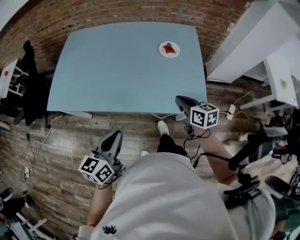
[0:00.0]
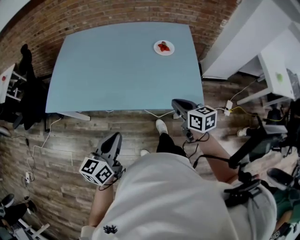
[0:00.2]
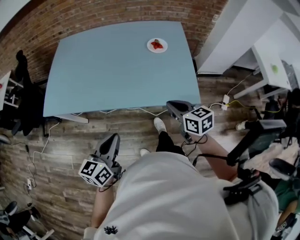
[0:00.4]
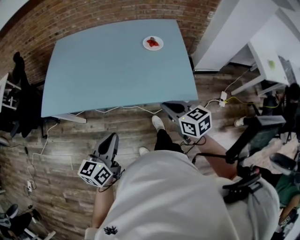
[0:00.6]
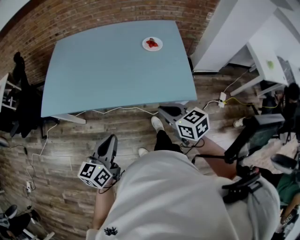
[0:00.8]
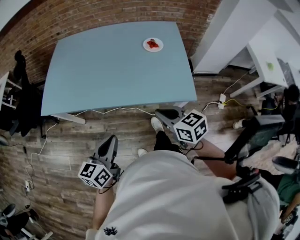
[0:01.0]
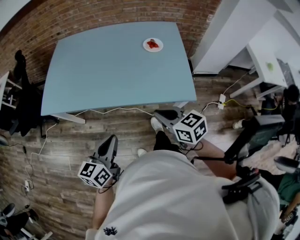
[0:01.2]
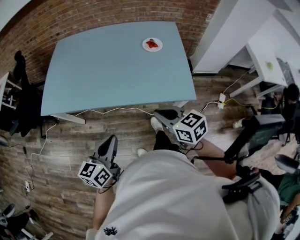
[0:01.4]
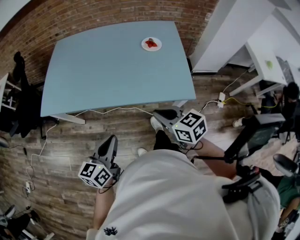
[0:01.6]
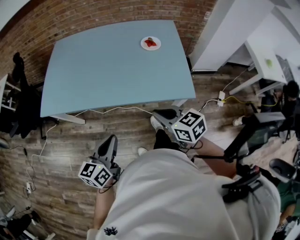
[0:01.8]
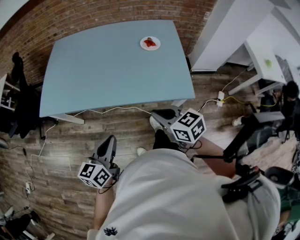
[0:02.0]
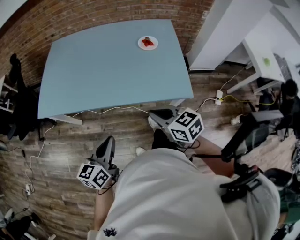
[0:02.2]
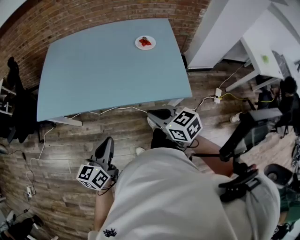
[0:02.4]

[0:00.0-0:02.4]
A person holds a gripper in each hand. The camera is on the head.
0:00.0 to 0:01.2: The right gripper shifts approximately 15 cm backward and to the left, while the left gripper moves backward, some 5 cm.
0:01.2 to 0:02.4: The two grippers keep their place.

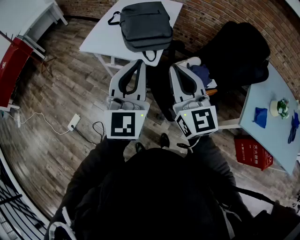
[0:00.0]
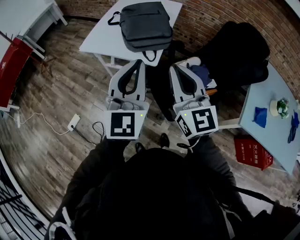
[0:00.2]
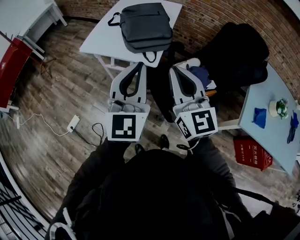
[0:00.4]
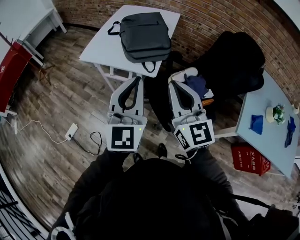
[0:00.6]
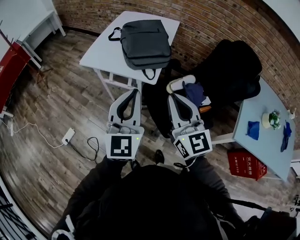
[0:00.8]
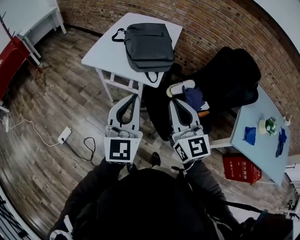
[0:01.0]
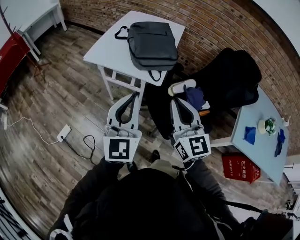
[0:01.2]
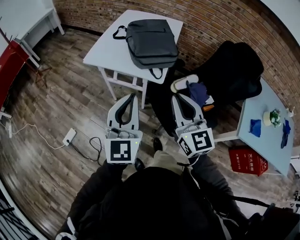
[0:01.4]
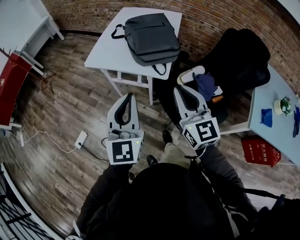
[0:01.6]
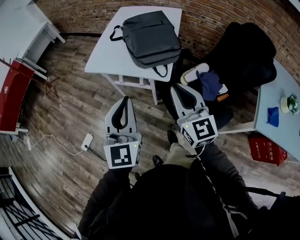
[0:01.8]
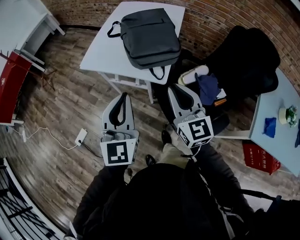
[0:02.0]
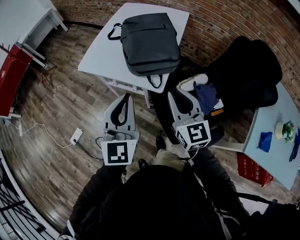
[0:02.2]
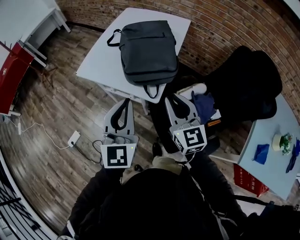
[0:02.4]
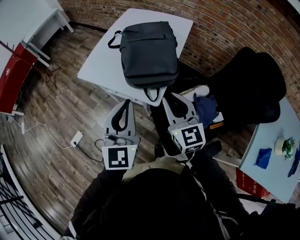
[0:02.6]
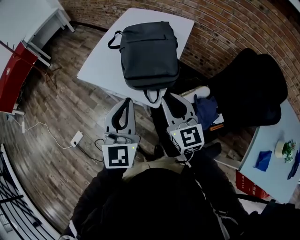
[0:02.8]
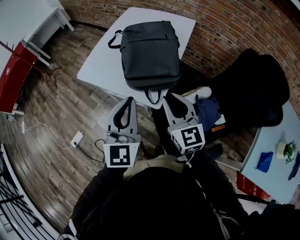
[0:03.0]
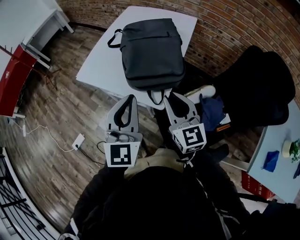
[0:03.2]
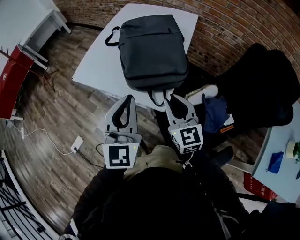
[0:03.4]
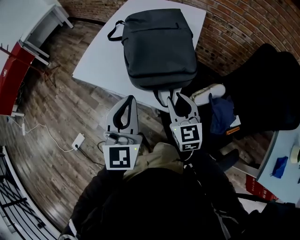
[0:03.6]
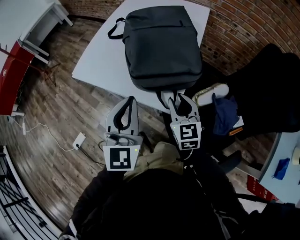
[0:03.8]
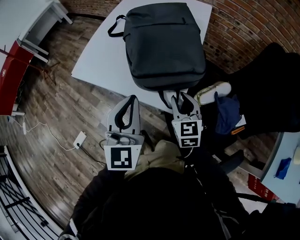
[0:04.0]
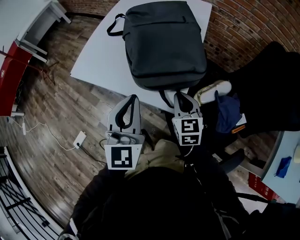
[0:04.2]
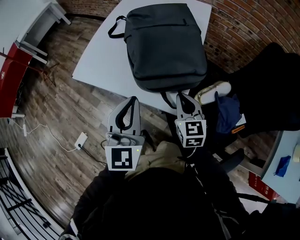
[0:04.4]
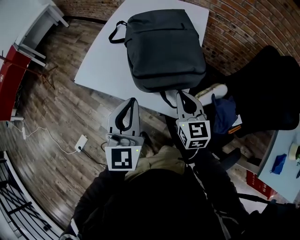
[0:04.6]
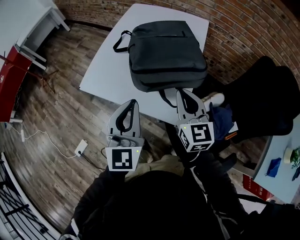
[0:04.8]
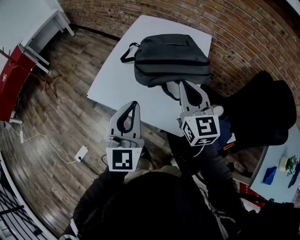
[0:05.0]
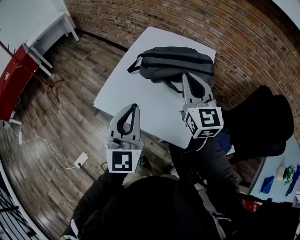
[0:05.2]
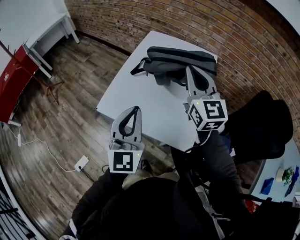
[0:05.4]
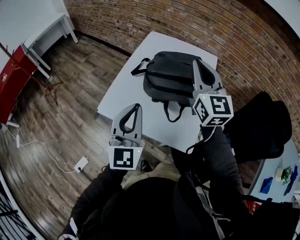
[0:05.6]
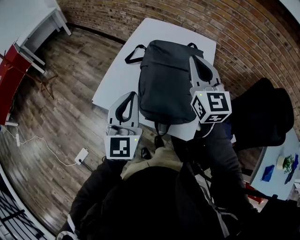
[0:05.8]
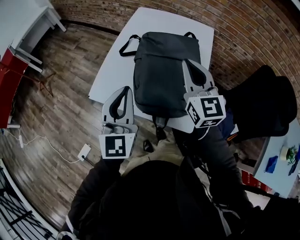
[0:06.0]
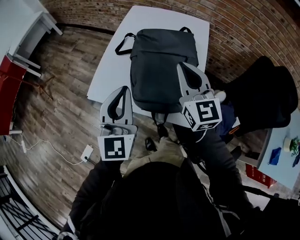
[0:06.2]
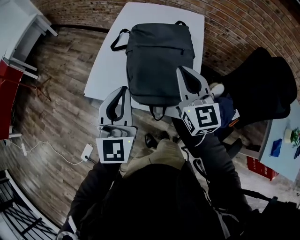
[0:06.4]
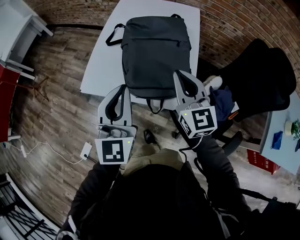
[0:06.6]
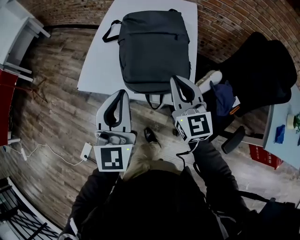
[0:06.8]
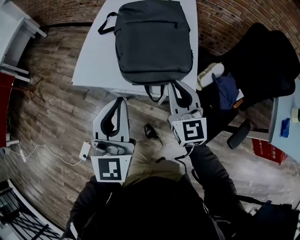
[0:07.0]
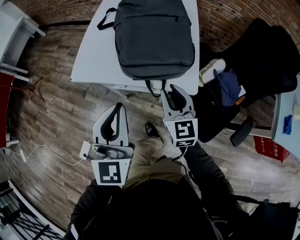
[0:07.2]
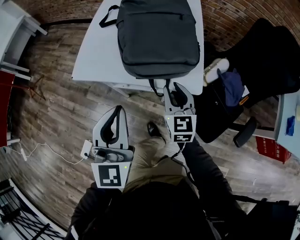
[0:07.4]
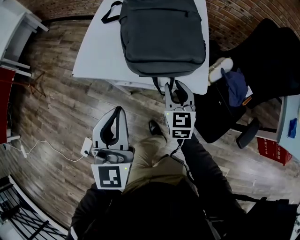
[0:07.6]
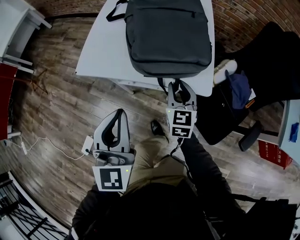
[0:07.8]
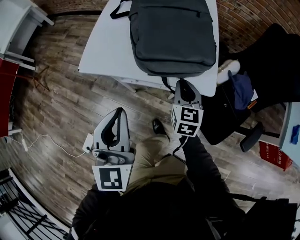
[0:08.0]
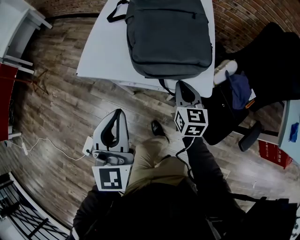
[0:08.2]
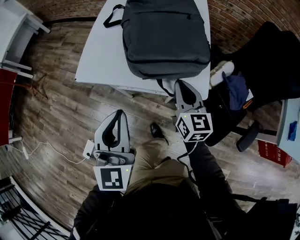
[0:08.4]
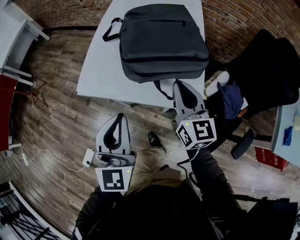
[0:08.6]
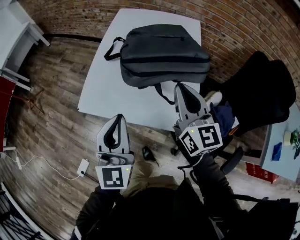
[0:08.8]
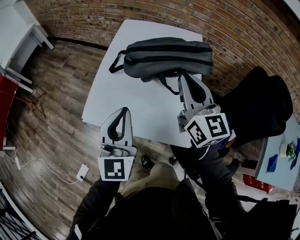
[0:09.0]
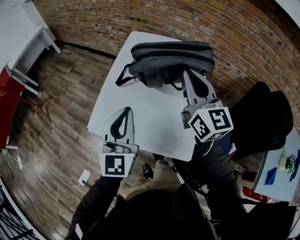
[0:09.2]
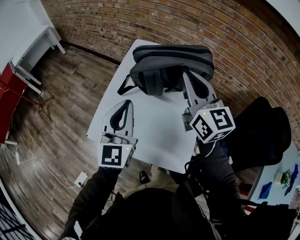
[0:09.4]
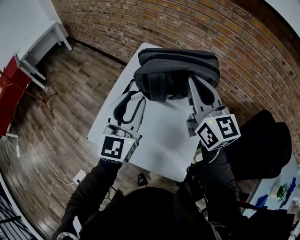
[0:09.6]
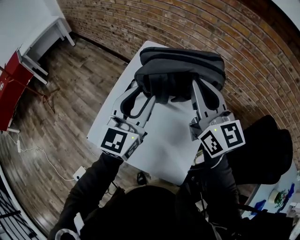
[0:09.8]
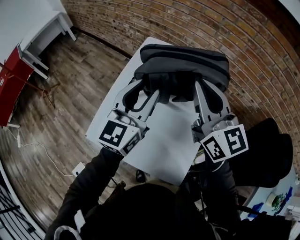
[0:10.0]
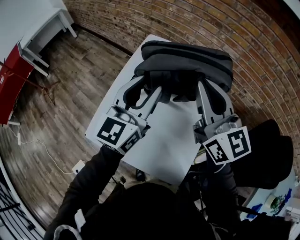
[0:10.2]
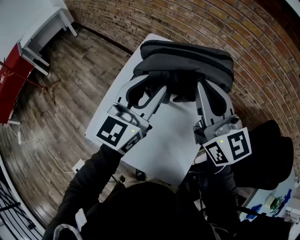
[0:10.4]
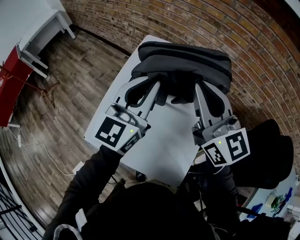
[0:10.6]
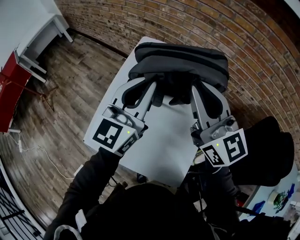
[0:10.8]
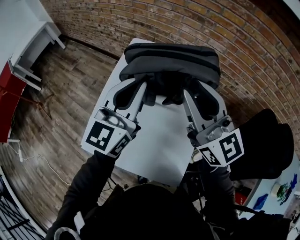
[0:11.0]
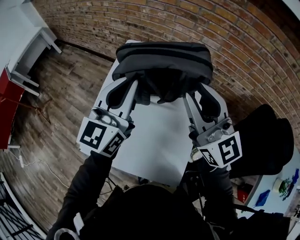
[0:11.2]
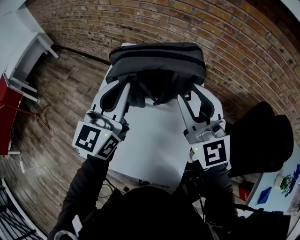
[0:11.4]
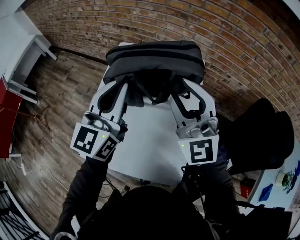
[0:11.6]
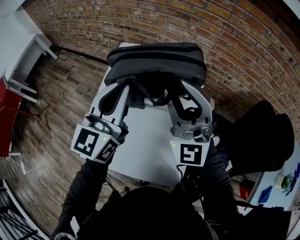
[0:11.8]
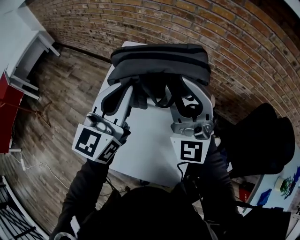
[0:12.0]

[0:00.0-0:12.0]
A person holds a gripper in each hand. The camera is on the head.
0:00.0 to 0:01.6: The right gripper is displaced to the left by some 5 cm; the left gripper shifts approximately 10 cm to the left.
0:01.6 to 0:03.0: The right gripper heads forward, to the right and downward, covering roughly 20 cm. The left gripper goes about 20 cm forward and to the right.
0:03.0 to 0:04.4: The left gripper goes roughly 15 cm downward, forward and to the left; the right gripper shifts roughly 20 cm downward and forward, and turns by about 20 degrees.
0:04.4 to 0:06.0: The right gripper travels upward and forward by some 30 cm, and swivels some 20 degrees. The left gripper is displaced to the left, upward and forward by approximately 20 cm.
0:06.0 to 0:07.6: The left gripper heads backward and downward, covering some 20 cm. The right gripper shifts roughly 35 cm downward and backward, changes its angle by approximately 30 degrees, and opens its fingers.
0:07.6 to 0:09.0: The right gripper goes roughly 35 cm upward and forward, and turns by approximately 30 degrees, while the left gripper moves forward and upward, roughly 20 cm.
0:09.0 to 0:10.4: Both grippers move forward and upward, approximately 20 cm. The left gripper opens its fingers.
0:10.4 to 0:12.0: The right gripper rolls counterclockwise, seen from behind, by some 50 degrees, and opens; the left gripper closes up.

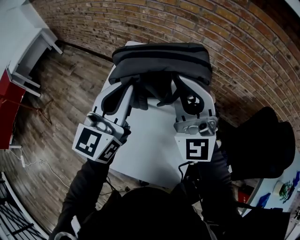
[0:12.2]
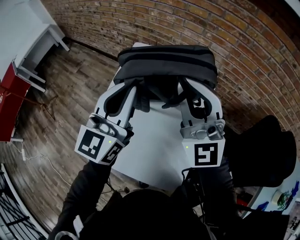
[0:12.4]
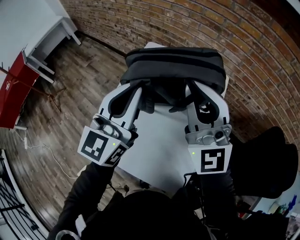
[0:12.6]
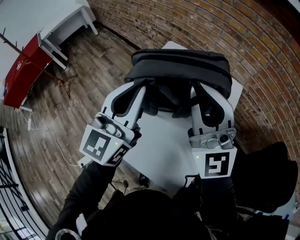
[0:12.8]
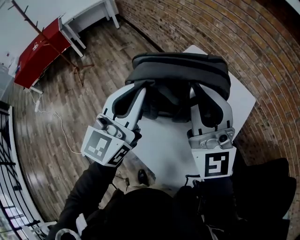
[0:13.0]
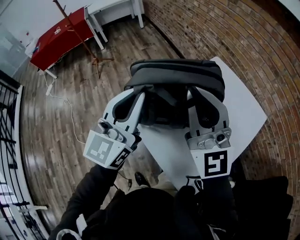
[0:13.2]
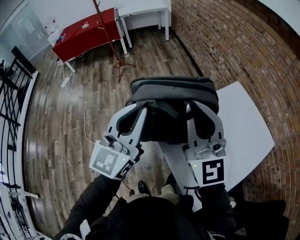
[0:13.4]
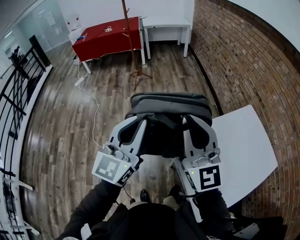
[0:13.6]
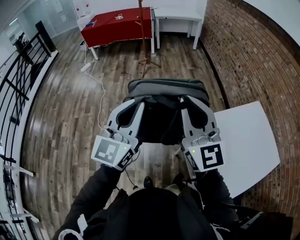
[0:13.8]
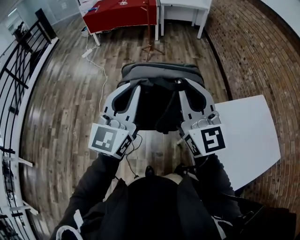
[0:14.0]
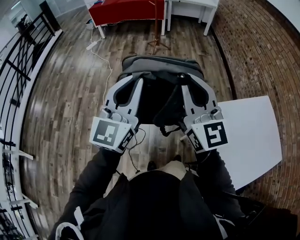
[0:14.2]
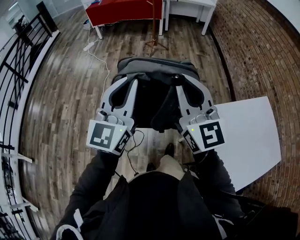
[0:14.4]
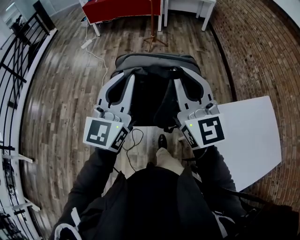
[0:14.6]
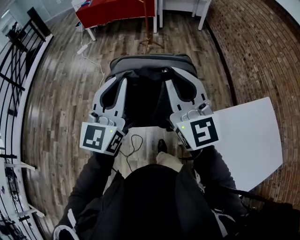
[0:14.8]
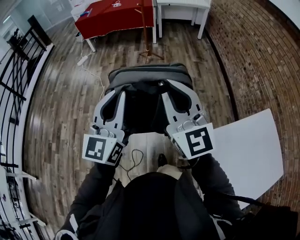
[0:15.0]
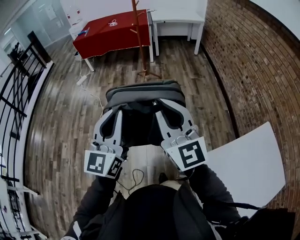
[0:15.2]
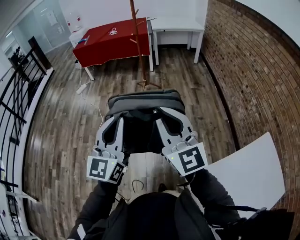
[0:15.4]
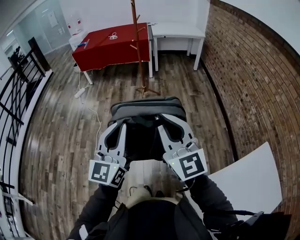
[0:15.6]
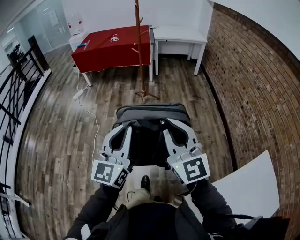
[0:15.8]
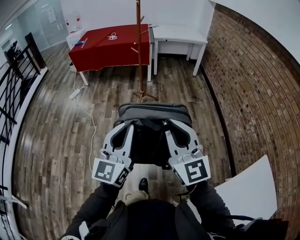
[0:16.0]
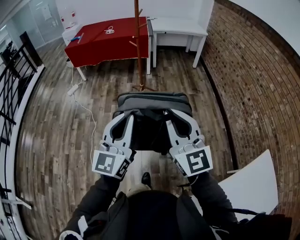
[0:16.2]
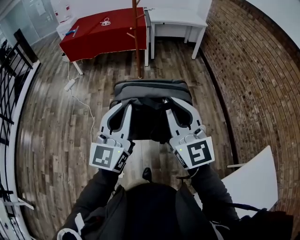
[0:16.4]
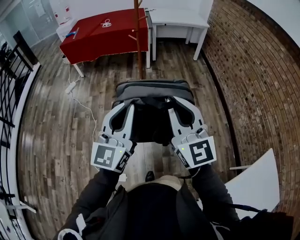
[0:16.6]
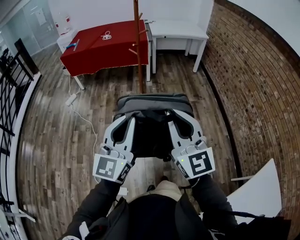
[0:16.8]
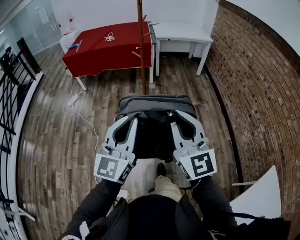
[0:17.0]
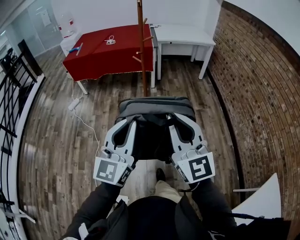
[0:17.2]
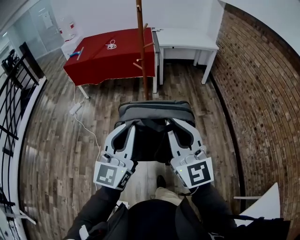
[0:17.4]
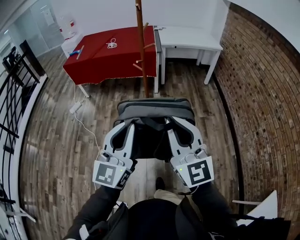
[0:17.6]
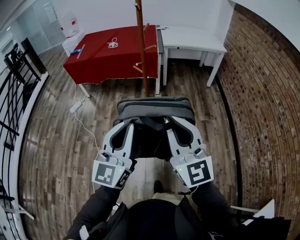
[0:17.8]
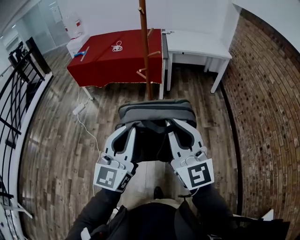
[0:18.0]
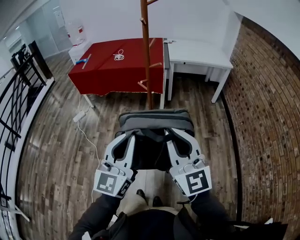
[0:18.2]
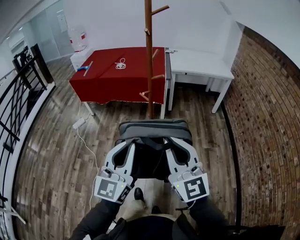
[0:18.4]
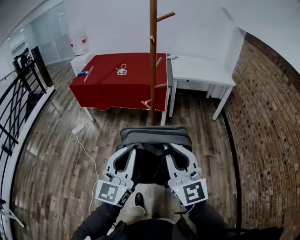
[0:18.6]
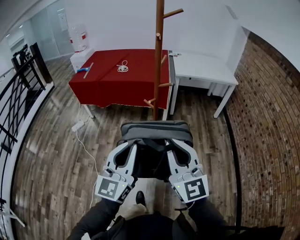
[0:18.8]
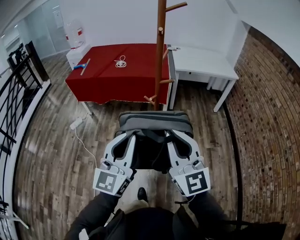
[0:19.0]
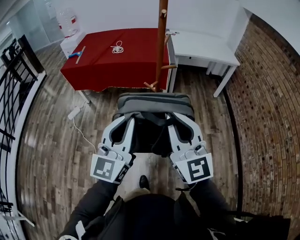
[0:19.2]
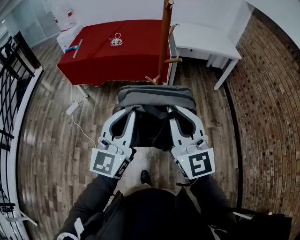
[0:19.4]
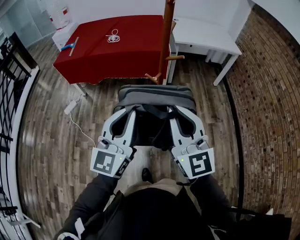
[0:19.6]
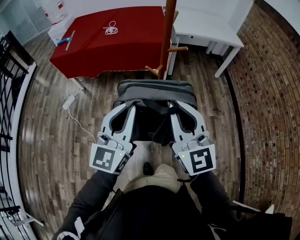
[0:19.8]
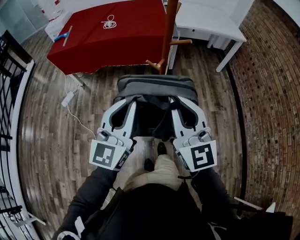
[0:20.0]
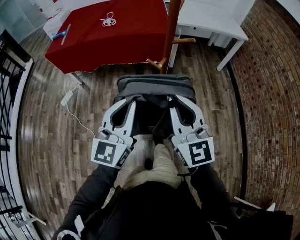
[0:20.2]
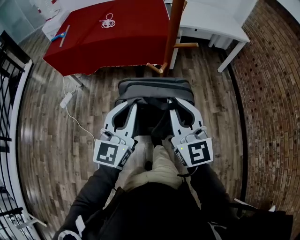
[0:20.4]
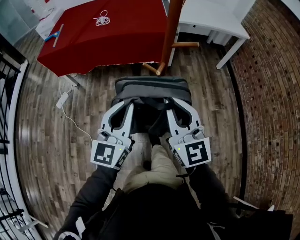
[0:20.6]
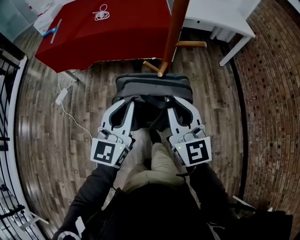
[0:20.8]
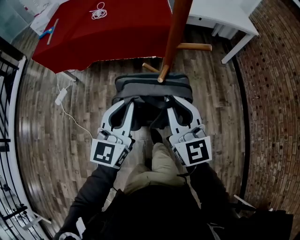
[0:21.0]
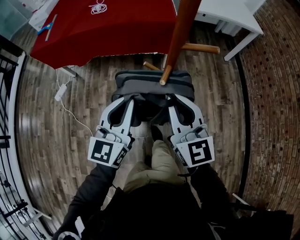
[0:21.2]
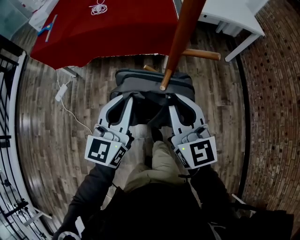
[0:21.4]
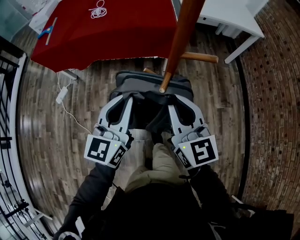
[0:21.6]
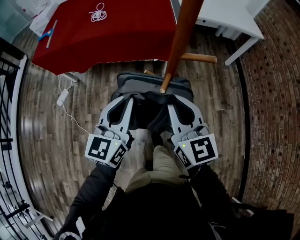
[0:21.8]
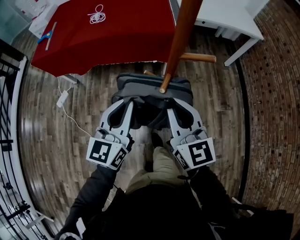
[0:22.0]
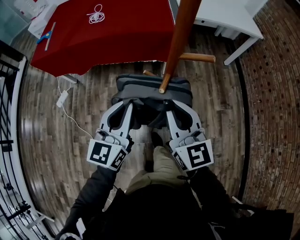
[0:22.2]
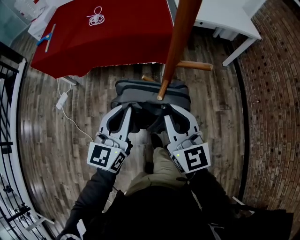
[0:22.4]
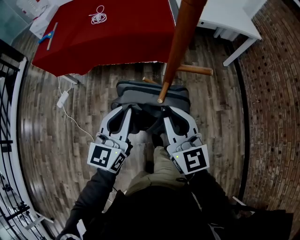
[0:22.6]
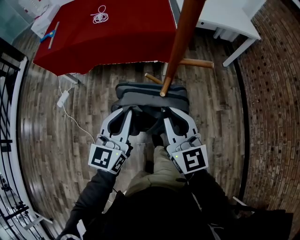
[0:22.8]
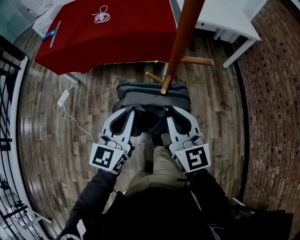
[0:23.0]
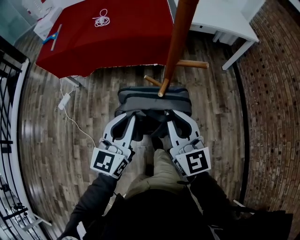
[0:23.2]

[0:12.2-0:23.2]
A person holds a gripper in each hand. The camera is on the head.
0:12.2 to 0:13.8: The pair of grippers is taken some 60 cm. The left gripper turns by roughly 60 degrees. The right gripper turns by approximately 70 degrees.
0:13.8 to 0:15.4: Both grippers travel together forward, some 30 cm.
0:15.4 to 0:17.0: Both grippers travel together forward, some 30 cm.
0:17.0 to 0:18.4: Both grippers travel together forward, approximately 30 cm.
0:18.4 to 0:20.0: Both grippers move forward and to the left, about 25 cm.
0:20.0 to 0:21.6: The grippers both shift forward and downward by some 25 cm.
0:21.6 to 0:23.2: Both grippers travel together backward, some 5 cm.
